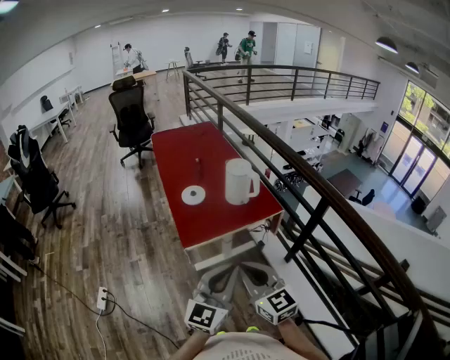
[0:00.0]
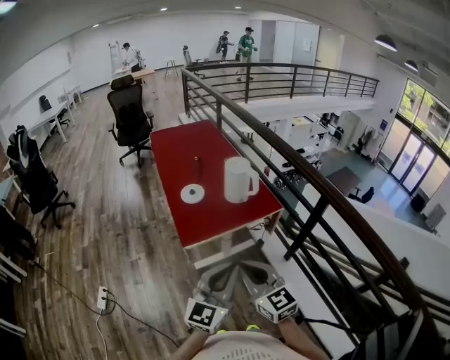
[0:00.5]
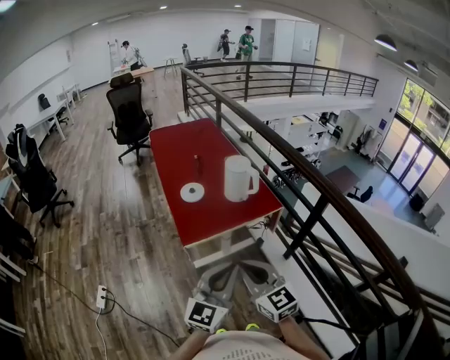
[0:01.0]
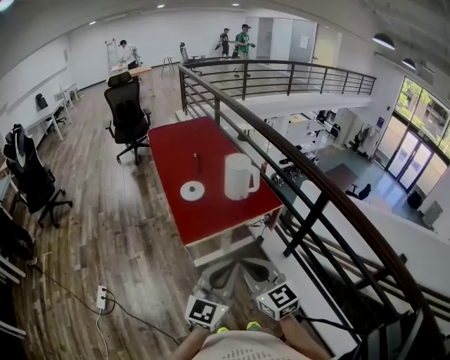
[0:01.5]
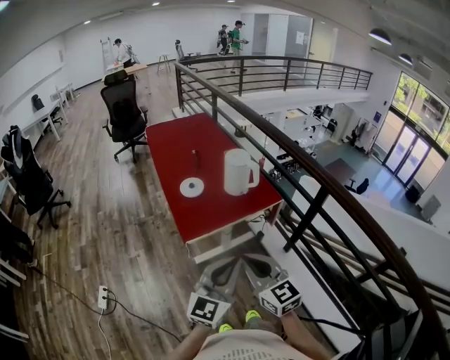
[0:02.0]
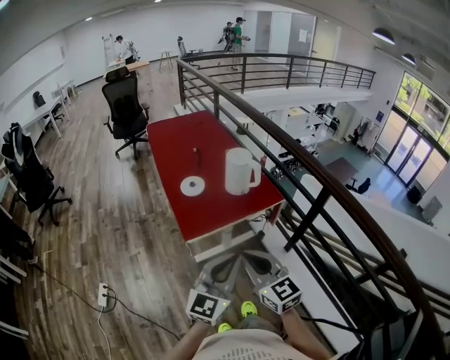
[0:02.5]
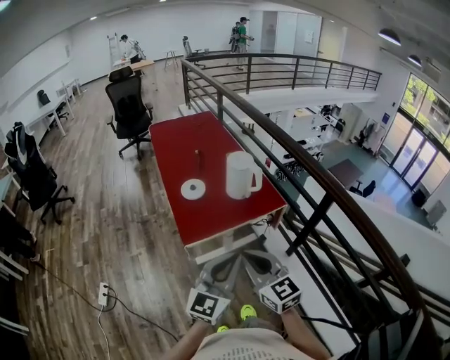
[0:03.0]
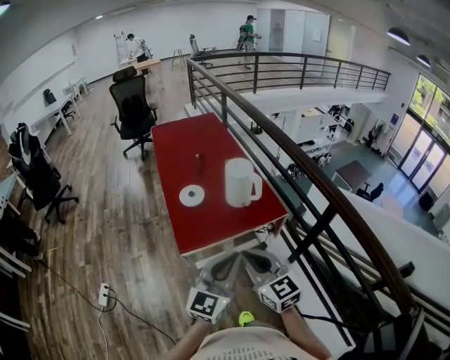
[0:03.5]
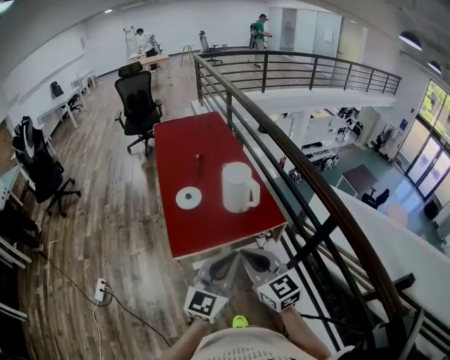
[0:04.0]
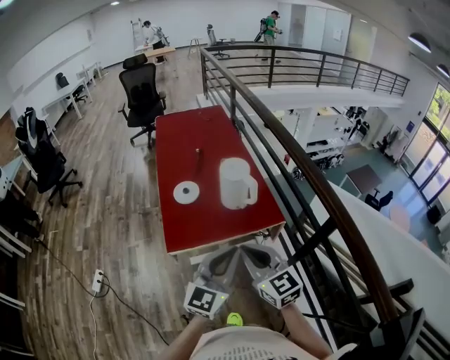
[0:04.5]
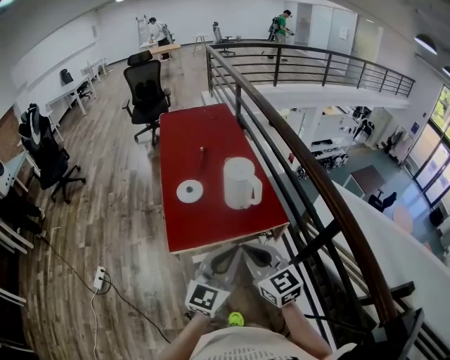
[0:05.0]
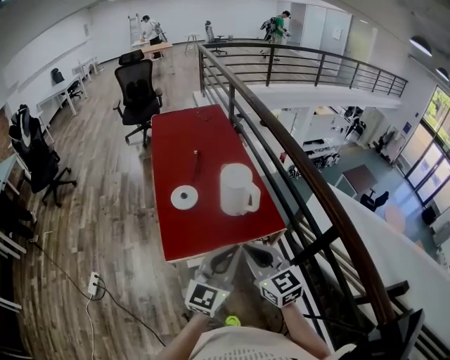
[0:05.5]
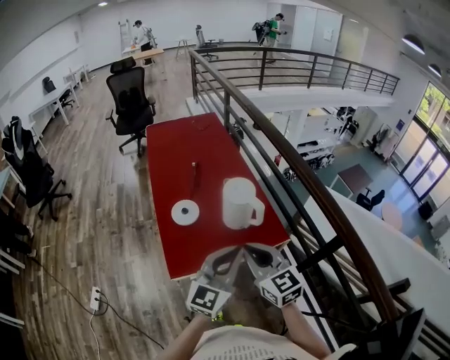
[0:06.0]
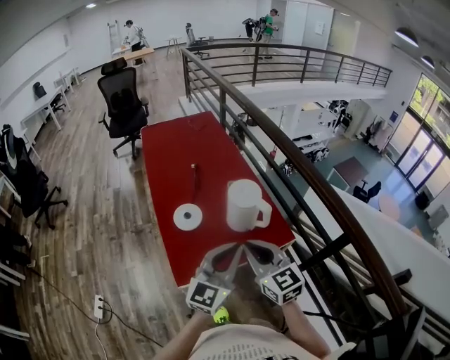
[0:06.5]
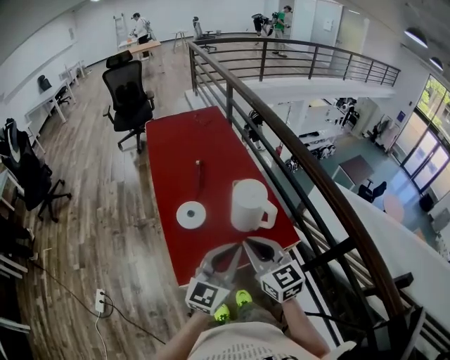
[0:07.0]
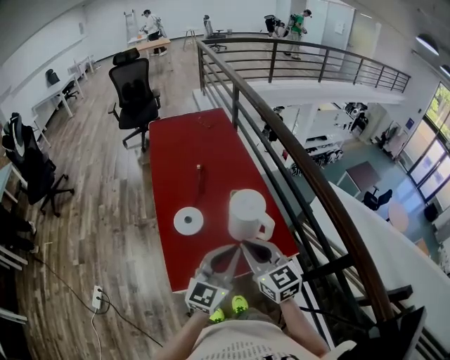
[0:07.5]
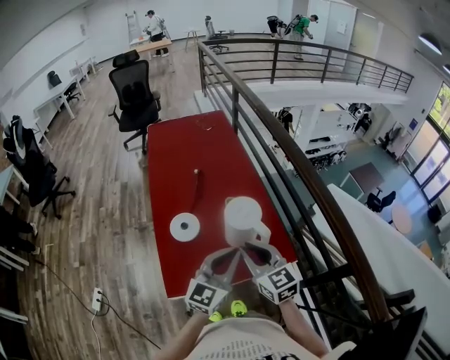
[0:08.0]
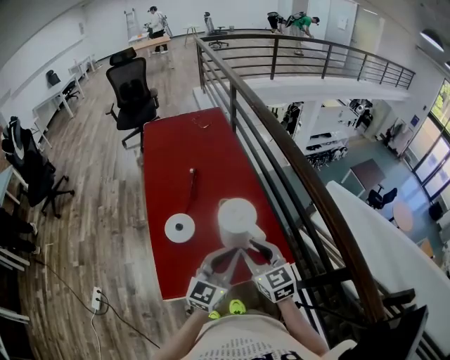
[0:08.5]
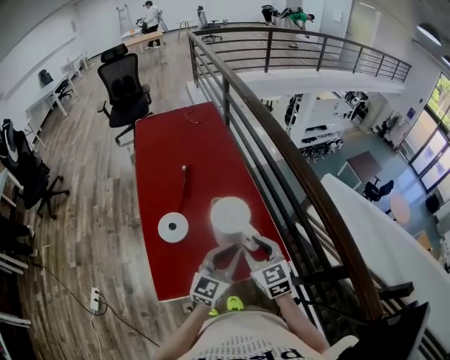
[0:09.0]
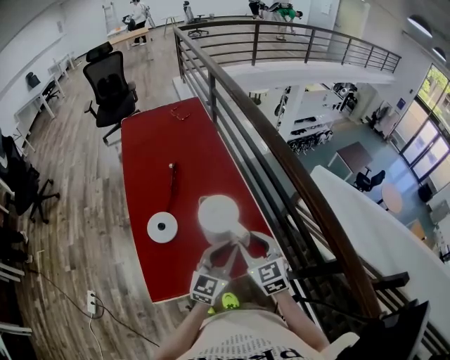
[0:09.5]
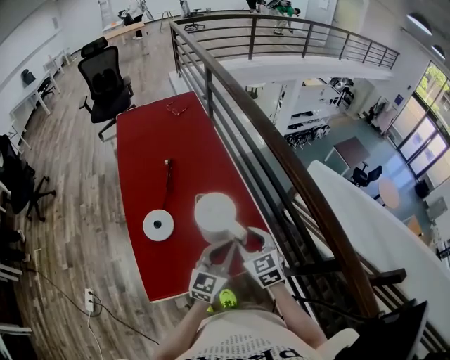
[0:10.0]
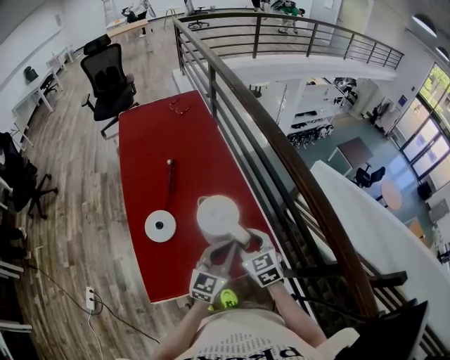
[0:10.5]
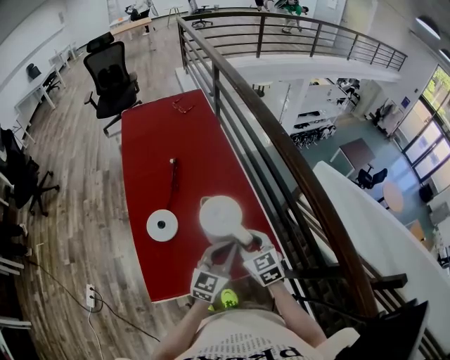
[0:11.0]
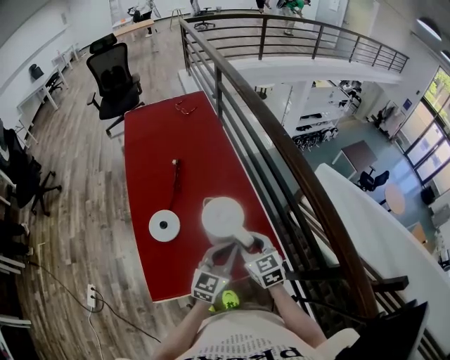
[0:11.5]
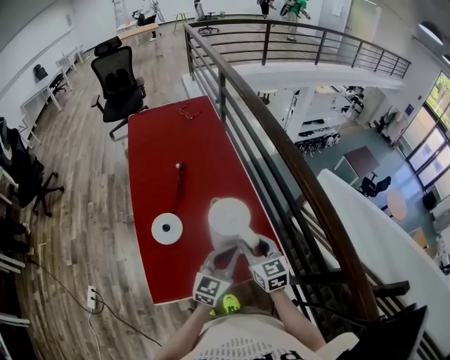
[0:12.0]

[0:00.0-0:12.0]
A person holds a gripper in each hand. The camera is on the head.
0:00.0 to 0:02.0: The grippers make only small movements.
0:02.0 to 0:04.0: Both grippers move forward and to the right, approximately 15 cm.
0:04.0 to 0:06.0: The grippers both shift forward by about 10 cm.
0:06.0 to 0:08.0: The left gripper moves forward and downward, some 15 cm. Meanwhile the right gripper shifts roughly 15 cm forward.
0:08.0 to 0:10.0: Both grippers travel together downward, to the right and forward, some 15 cm. The right gripper opens up.
0:10.0 to 0:12.0: The grippers make only small movements.

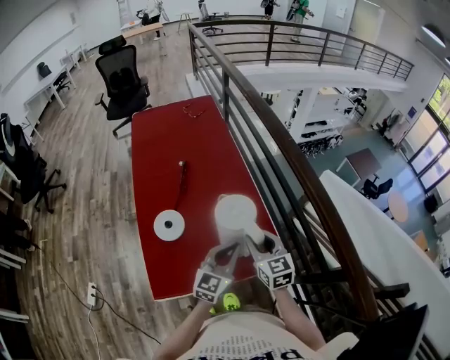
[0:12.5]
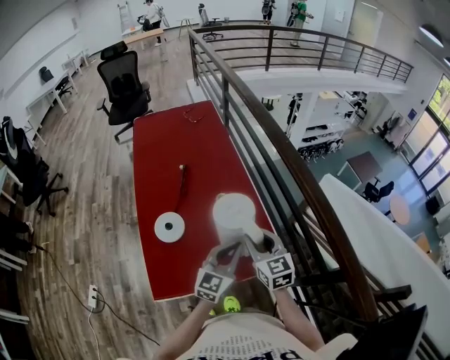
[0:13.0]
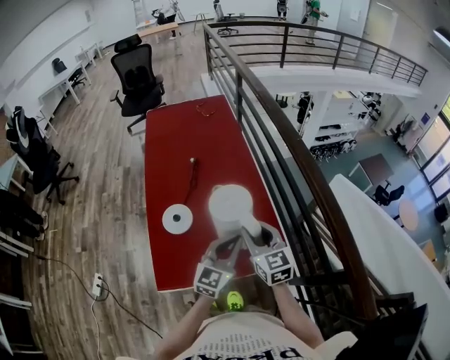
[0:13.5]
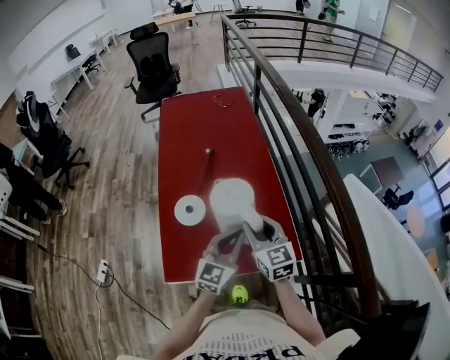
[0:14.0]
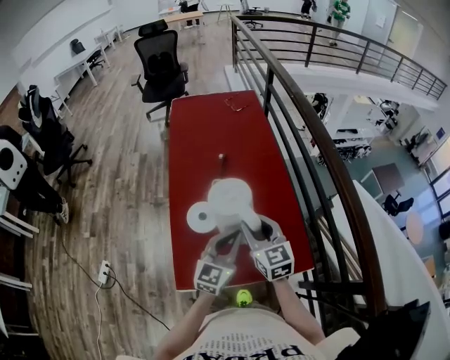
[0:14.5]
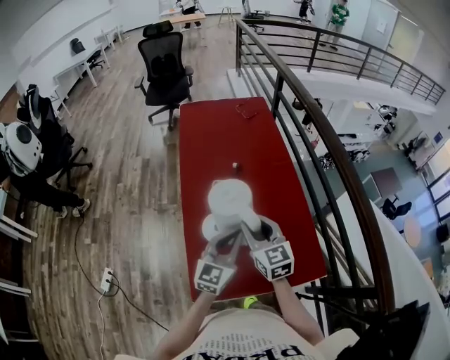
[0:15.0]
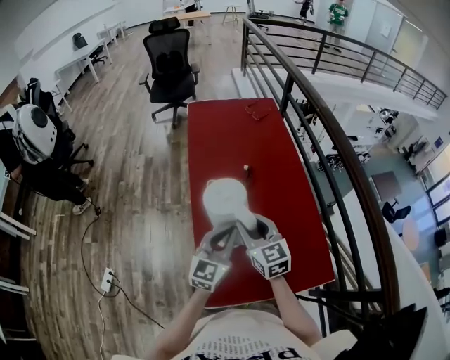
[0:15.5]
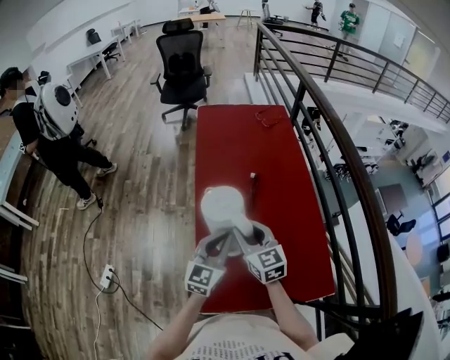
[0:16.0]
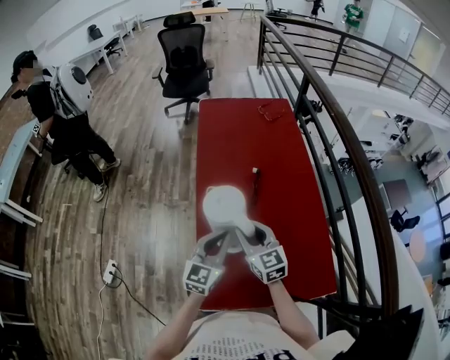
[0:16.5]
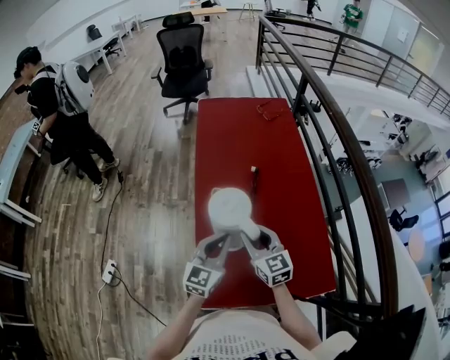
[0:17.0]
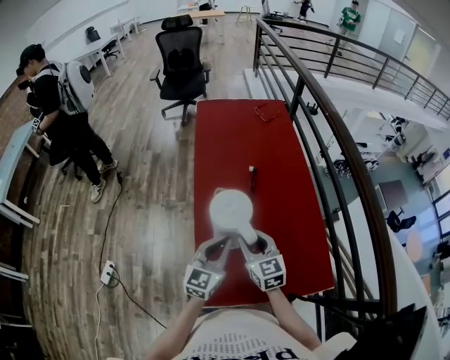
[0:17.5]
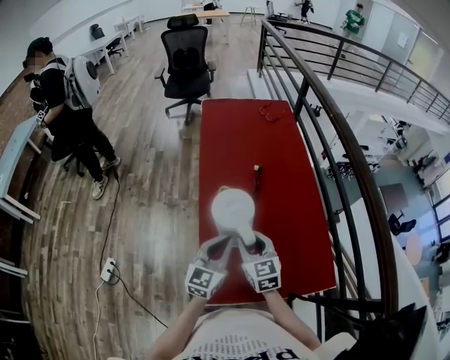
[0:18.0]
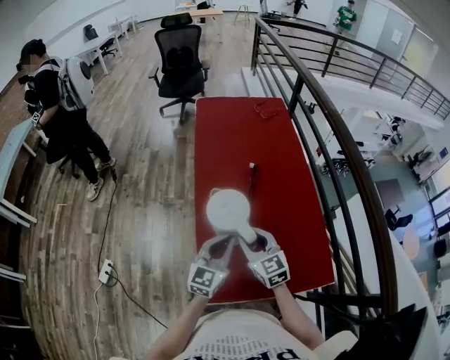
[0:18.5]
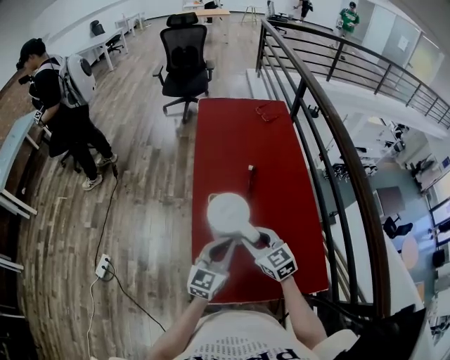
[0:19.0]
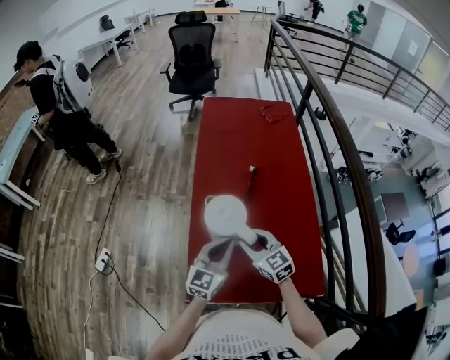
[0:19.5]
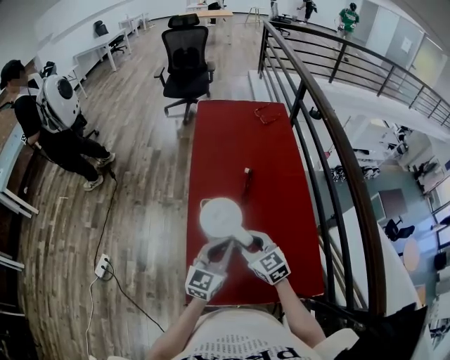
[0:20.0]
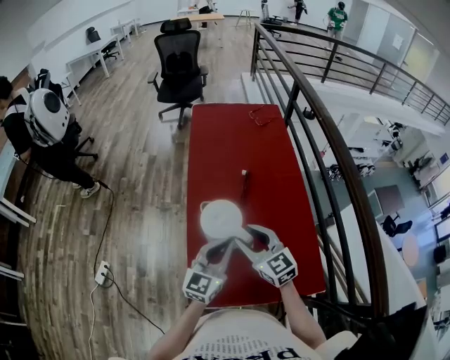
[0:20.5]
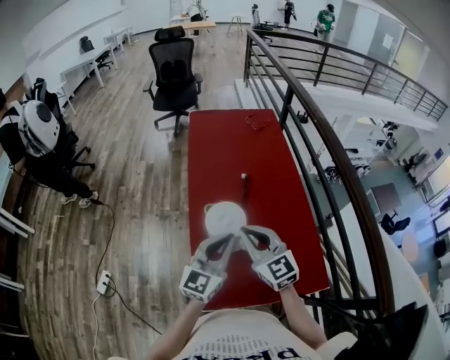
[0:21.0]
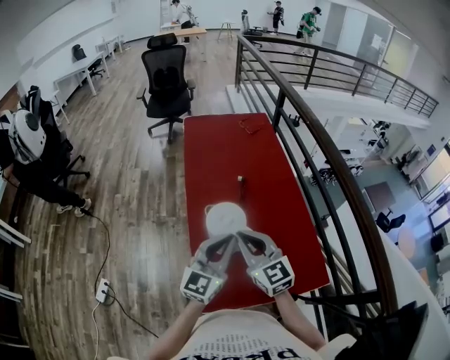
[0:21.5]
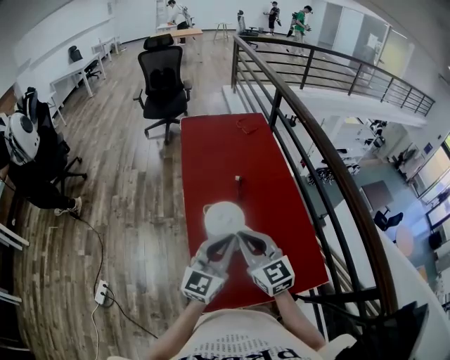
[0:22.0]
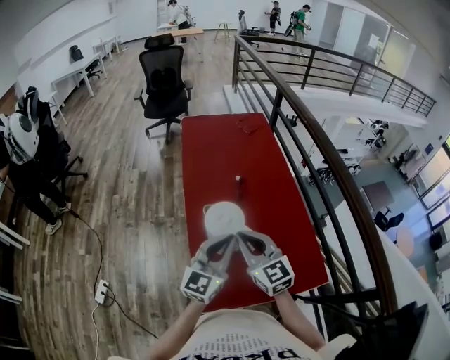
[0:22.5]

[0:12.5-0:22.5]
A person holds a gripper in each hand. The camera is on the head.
0:12.5 to 0:14.5: The right gripper shifts about 15 cm to the left and upward. The left gripper goes about 10 cm to the left.
0:14.5 to 0:16.5: The grippers both shift to the left and forward by some 20 cm.
0:16.5 to 0:18.5: The right gripper travels backward by roughly 5 cm.
0:18.5 to 0:20.5: The right gripper changes place by approximately 5 cm; the left gripper changes place by about 5 cm.
0:20.5 to 0:22.5: The left gripper changes place by approximately 5 cm. Meanwhile the right gripper ends up about 5 cm from where it was, and closes its fingers.

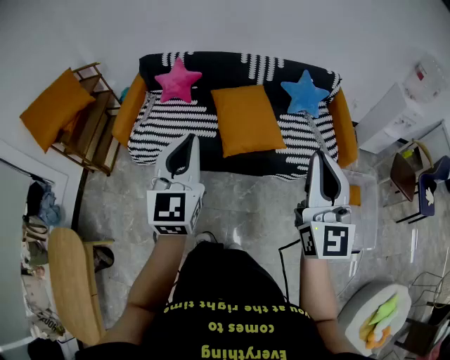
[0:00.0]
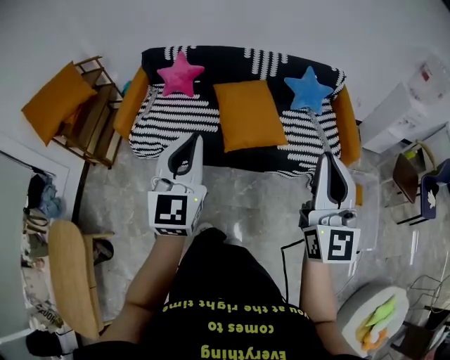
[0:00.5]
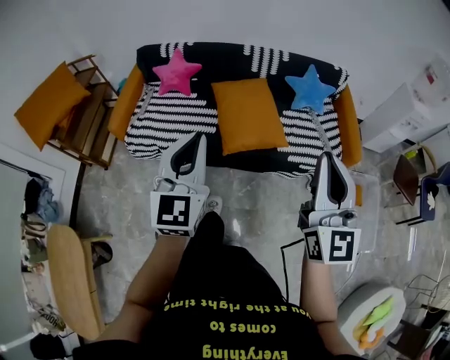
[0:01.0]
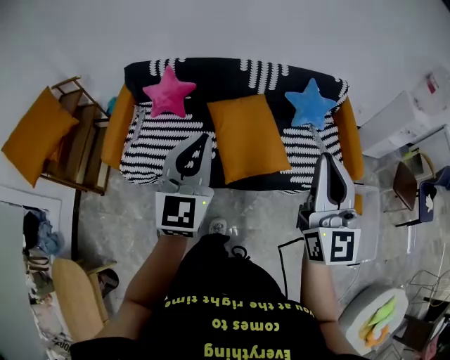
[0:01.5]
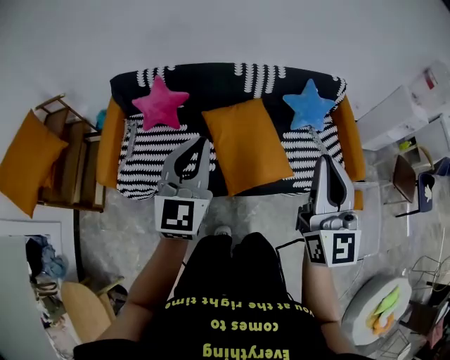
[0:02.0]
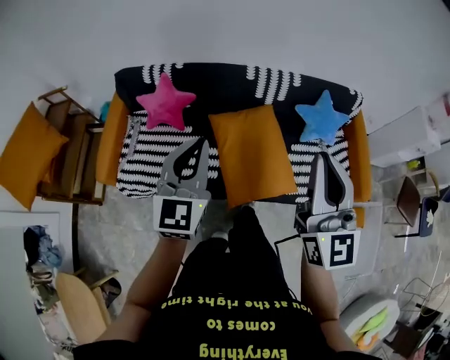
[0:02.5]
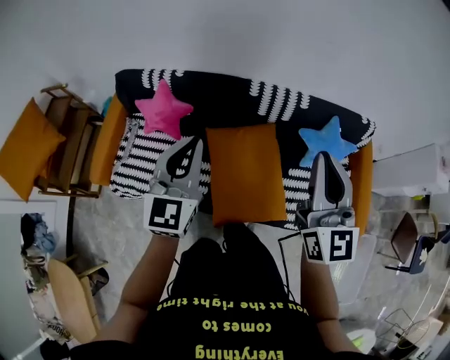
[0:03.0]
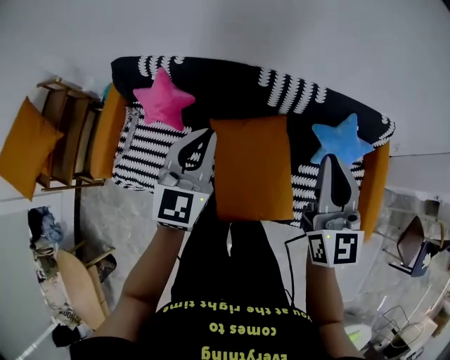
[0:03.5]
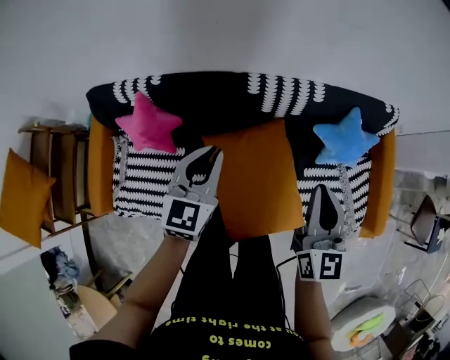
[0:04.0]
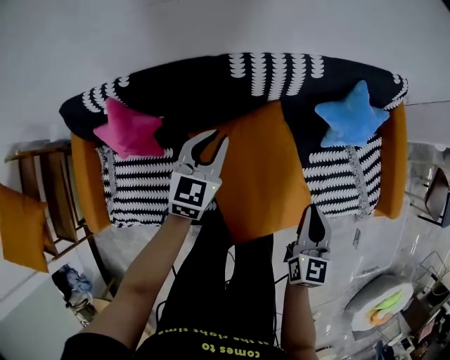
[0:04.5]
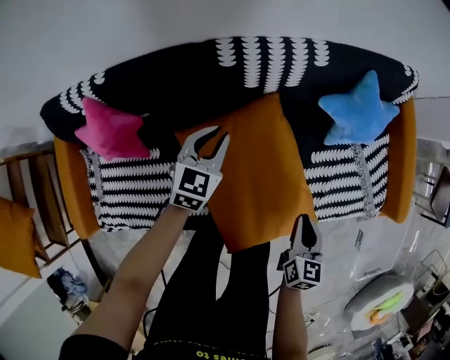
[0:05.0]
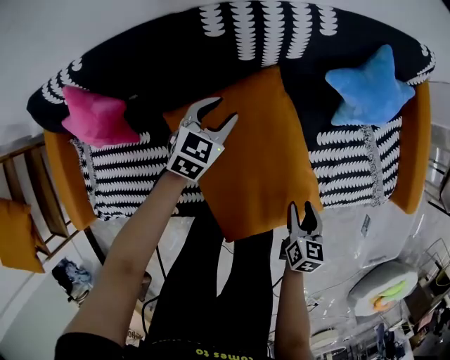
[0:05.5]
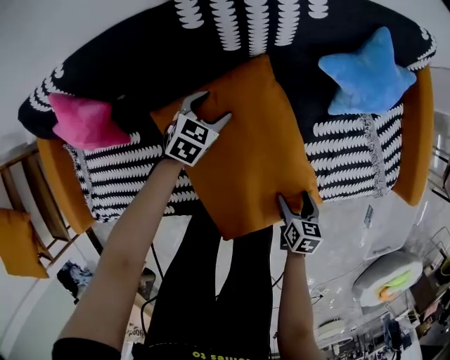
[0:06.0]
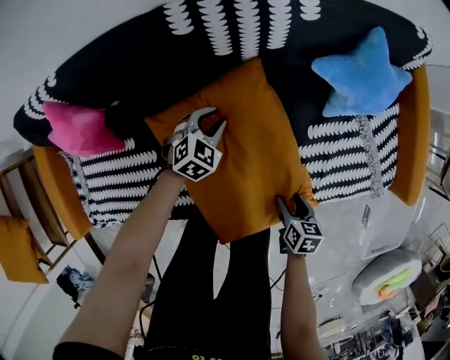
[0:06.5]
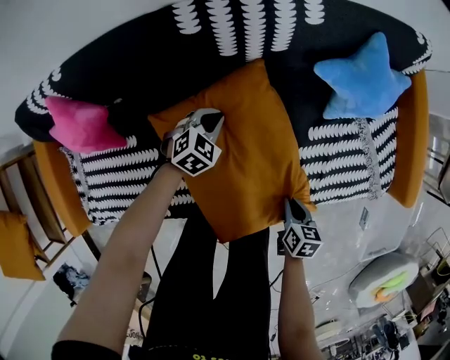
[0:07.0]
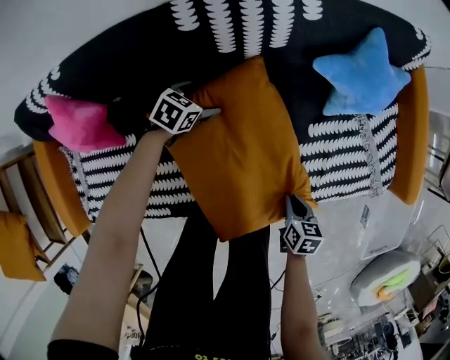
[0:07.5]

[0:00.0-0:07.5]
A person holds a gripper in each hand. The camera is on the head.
0:00.0 to 0:02.0: Both grippers travel together forward, about 30 cm.
0:02.0 to 0:04.0: Both grippers travel together forward and downward, some 40 cm. The left gripper rotates about 20 degrees. The right gripper rotates about 20 degrees.
0:04.0 to 0:05.5: The grippers both shift downward by about 40 cm. The left gripper turns by some 30 degrees, and opens its fingers, while the right gripper points its fingers approximately 40 degrees further downward, and opens its fingers.
0:05.5 to 0:07.5: The left gripper heads downward, covering about 10 cm, swivels roughly 20 degrees, and opens its fingers. The right gripper shifts some 5 cm downward, and closes up.
